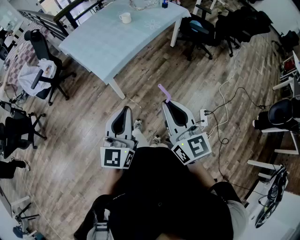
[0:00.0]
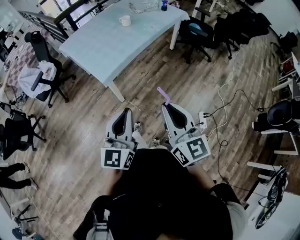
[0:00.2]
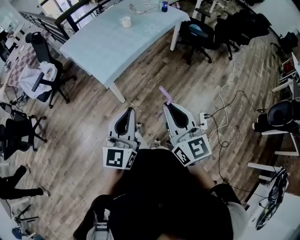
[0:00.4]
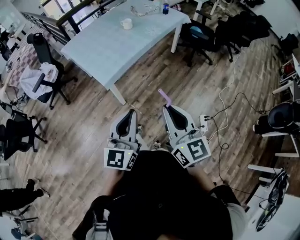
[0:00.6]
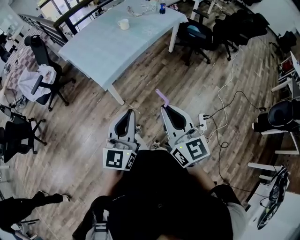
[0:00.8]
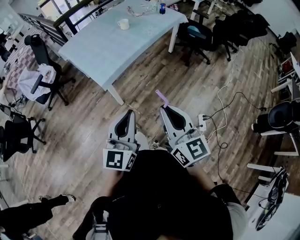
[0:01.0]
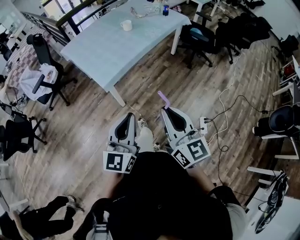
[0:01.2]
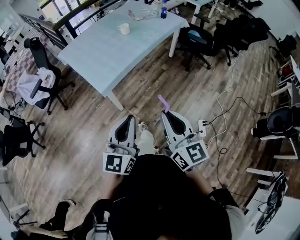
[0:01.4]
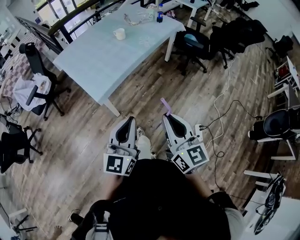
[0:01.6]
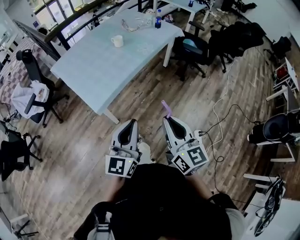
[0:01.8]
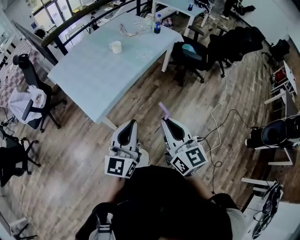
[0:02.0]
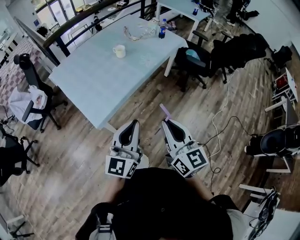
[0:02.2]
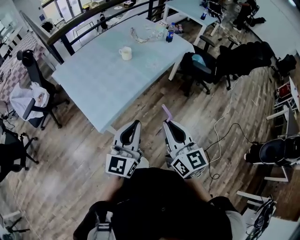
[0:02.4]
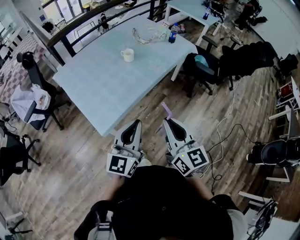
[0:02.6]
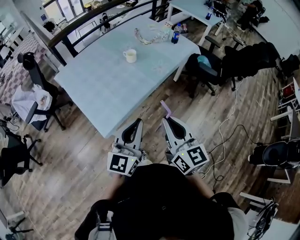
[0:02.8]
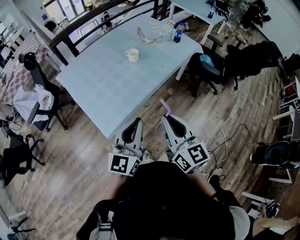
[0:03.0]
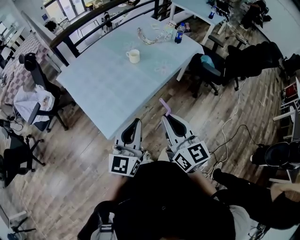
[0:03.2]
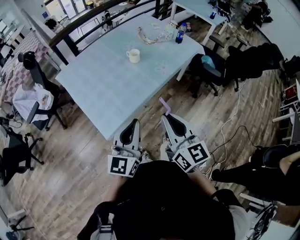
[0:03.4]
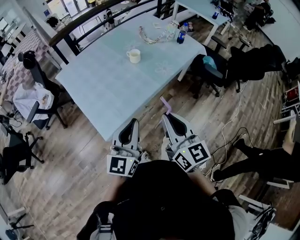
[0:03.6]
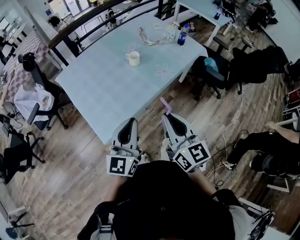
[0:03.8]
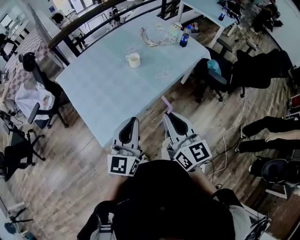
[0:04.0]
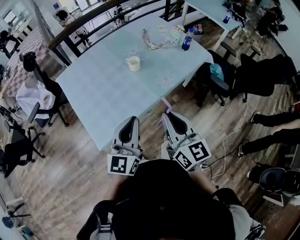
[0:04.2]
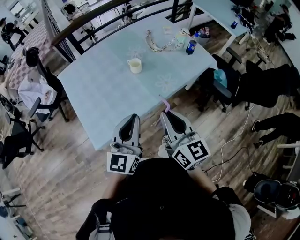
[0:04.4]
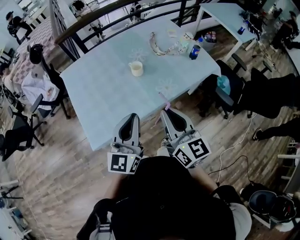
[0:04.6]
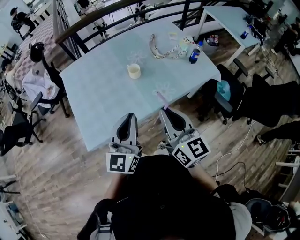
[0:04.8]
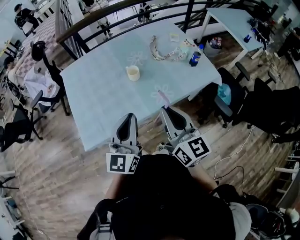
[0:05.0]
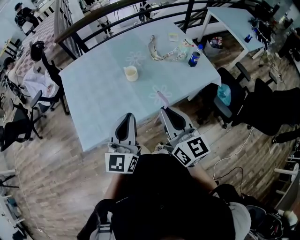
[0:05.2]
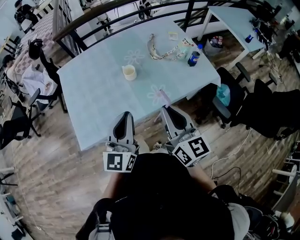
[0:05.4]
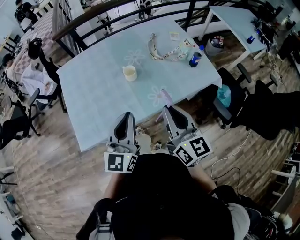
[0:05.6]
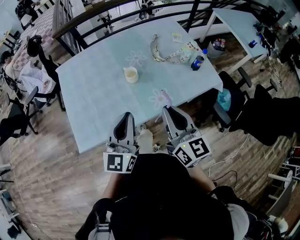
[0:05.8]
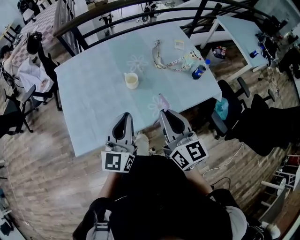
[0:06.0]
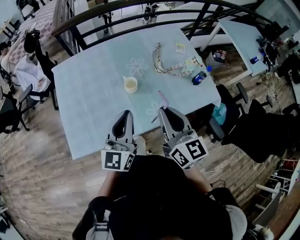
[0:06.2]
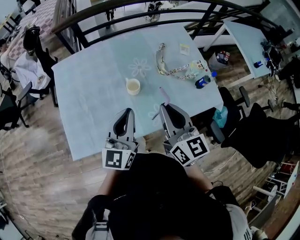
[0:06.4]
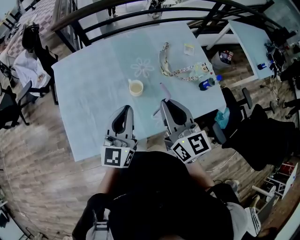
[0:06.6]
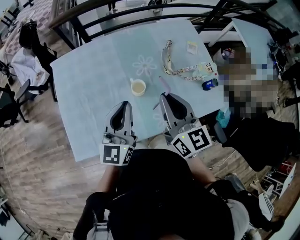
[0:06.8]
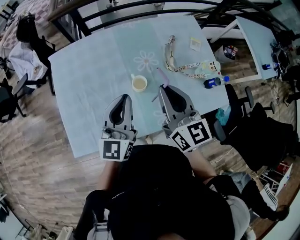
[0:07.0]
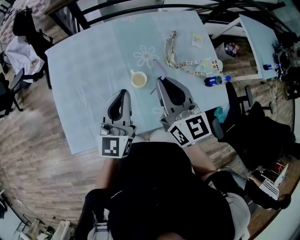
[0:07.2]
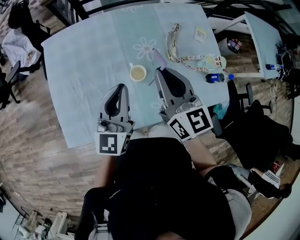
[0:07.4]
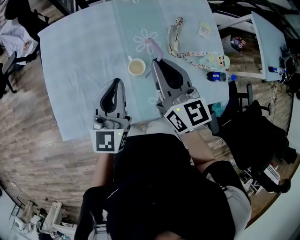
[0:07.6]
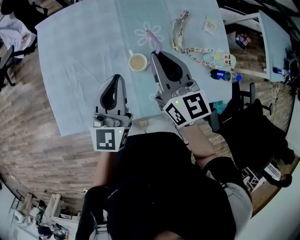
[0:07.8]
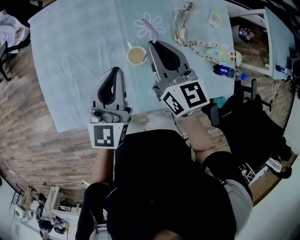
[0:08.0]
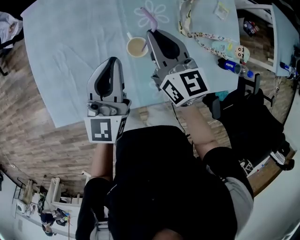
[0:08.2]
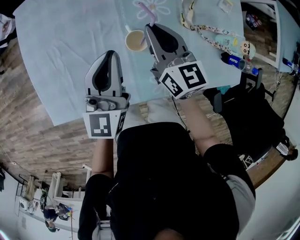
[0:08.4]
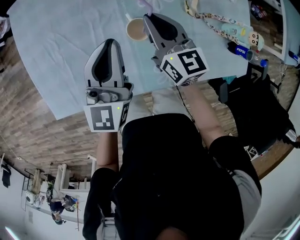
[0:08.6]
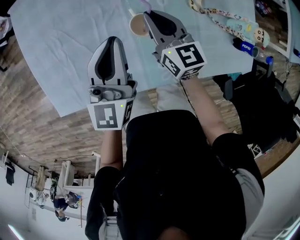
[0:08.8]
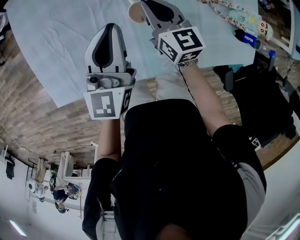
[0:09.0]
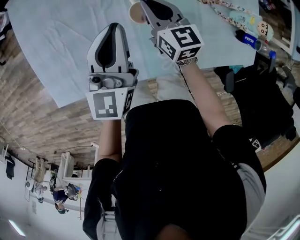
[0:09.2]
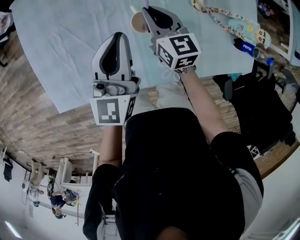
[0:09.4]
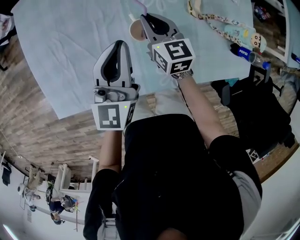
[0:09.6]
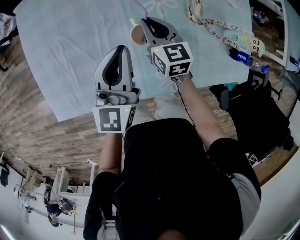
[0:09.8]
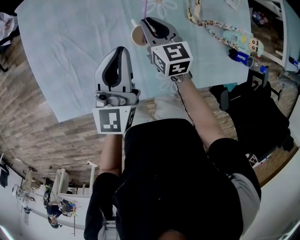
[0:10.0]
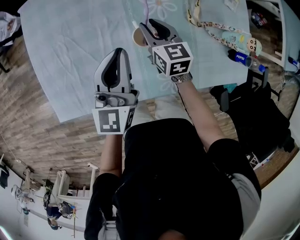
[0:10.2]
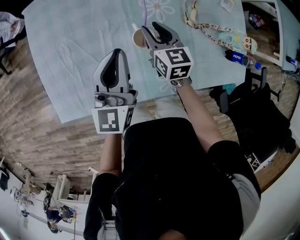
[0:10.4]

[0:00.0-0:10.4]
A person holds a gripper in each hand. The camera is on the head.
0:00.0 to 0:01.4: The grippers stay close to where they were, moving slightly.
0:01.4 to 0:03.0: The two grippers go some 30 cm forward.
0:03.0 to 0:04.4: Both grippers travel together forward and to the right, some 20 cm.
0:04.4 to 0:06.0: The grippers both shift forward and to the right by some 20 cm.
0:06.0 to 0:07.4: Both grippers move forward, roughly 20 cm.
0:07.4 to 0:09.0: The right gripper moves downward, about 25 cm. The left gripper moves downward and forward, some 15 cm.
0:09.0 to 0:10.4: The right gripper opens its fingers.

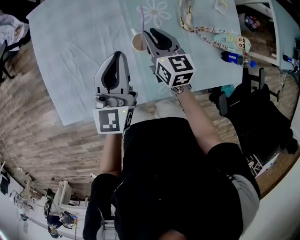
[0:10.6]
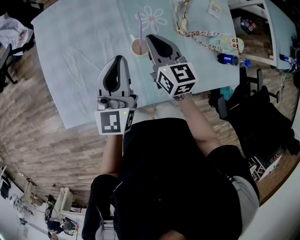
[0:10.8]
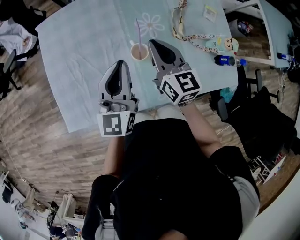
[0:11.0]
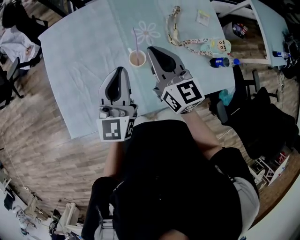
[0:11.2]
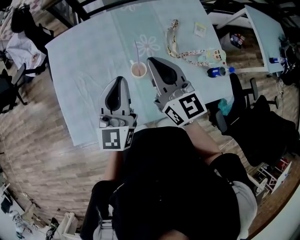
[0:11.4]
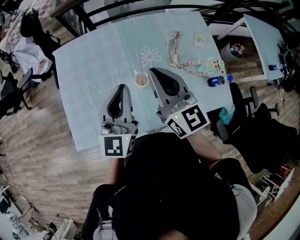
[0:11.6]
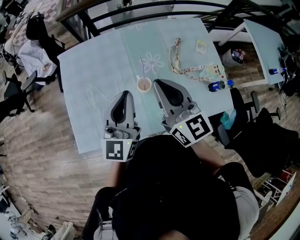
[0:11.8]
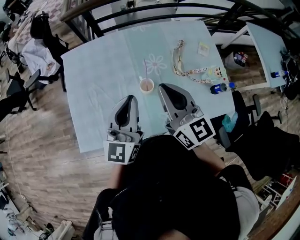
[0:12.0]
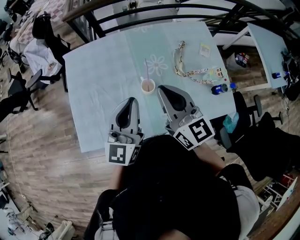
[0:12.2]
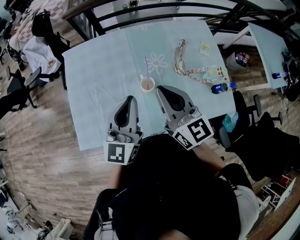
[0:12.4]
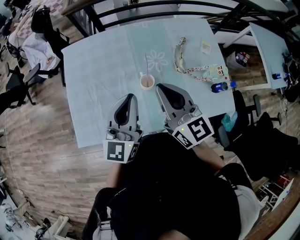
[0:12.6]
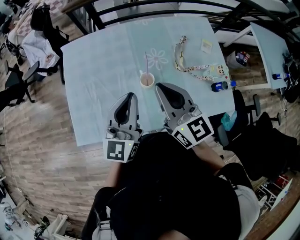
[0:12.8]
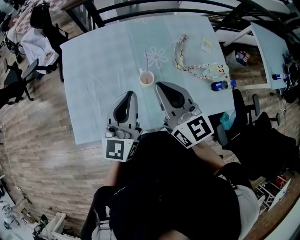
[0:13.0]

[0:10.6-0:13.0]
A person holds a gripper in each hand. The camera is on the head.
0:10.6 to 0:11.8: The right gripper moves upward, roughly 25 cm, and changes its angle by about 30 degrees. Meanwhile the left gripper travels upward and backward by roughly 15 cm.
0:11.8 to 0:13.0: The grippers stay close to where they were, moving slightly.

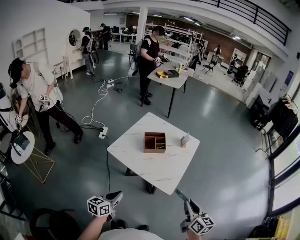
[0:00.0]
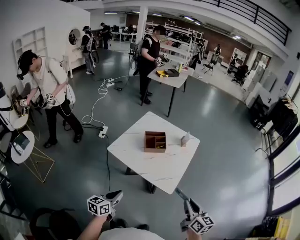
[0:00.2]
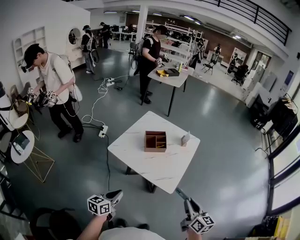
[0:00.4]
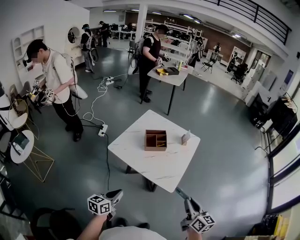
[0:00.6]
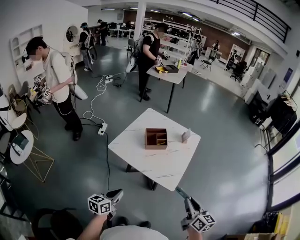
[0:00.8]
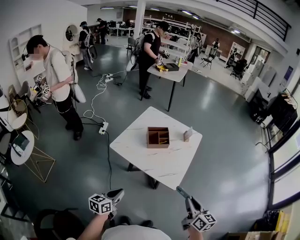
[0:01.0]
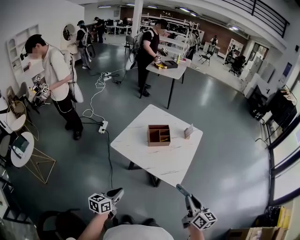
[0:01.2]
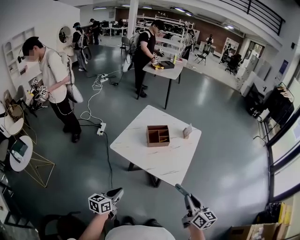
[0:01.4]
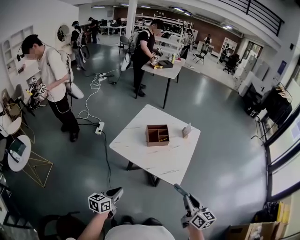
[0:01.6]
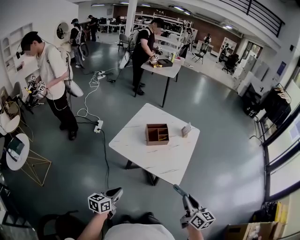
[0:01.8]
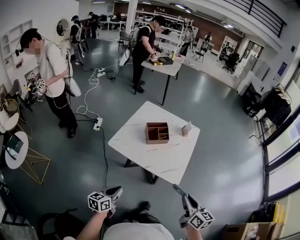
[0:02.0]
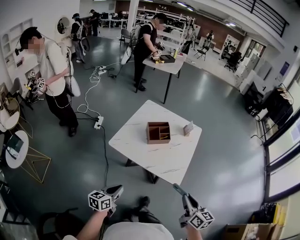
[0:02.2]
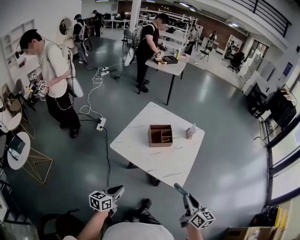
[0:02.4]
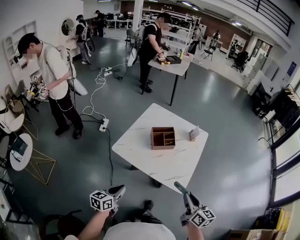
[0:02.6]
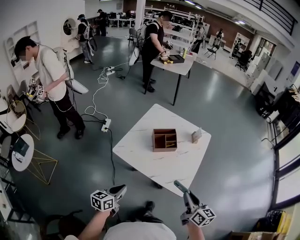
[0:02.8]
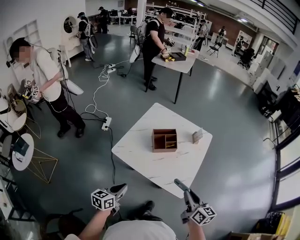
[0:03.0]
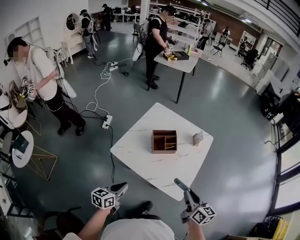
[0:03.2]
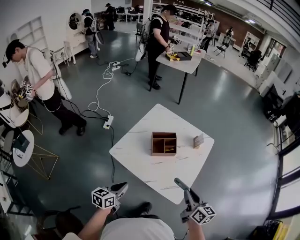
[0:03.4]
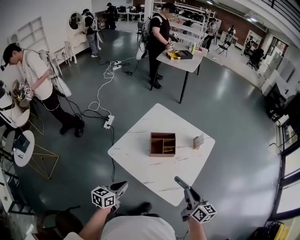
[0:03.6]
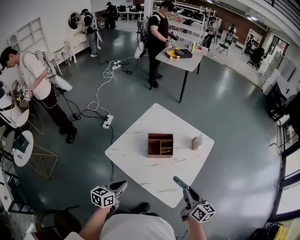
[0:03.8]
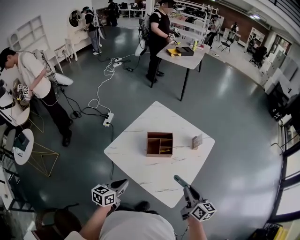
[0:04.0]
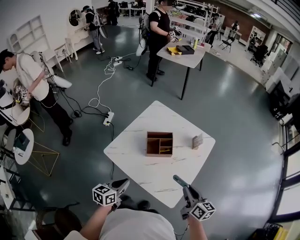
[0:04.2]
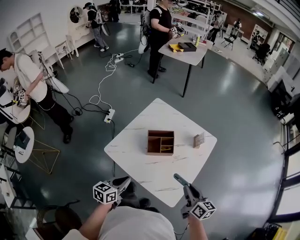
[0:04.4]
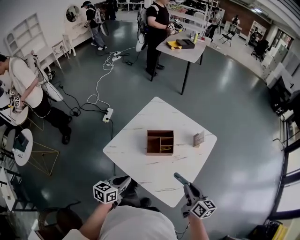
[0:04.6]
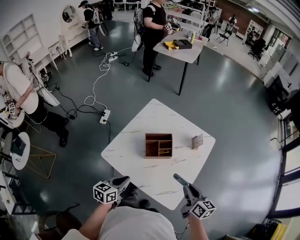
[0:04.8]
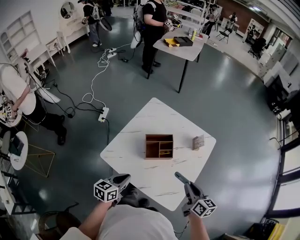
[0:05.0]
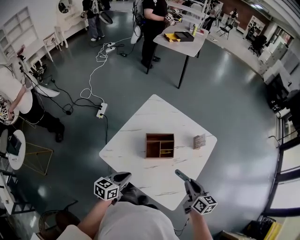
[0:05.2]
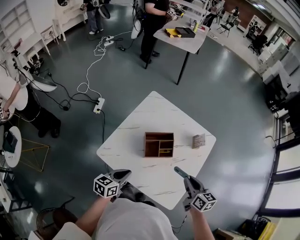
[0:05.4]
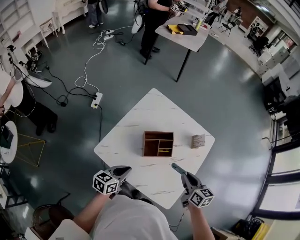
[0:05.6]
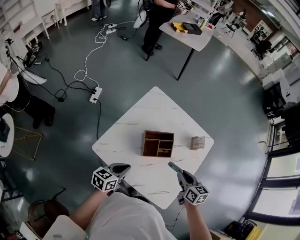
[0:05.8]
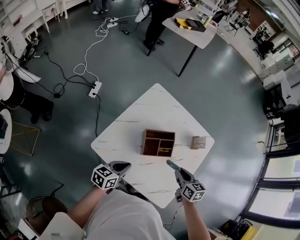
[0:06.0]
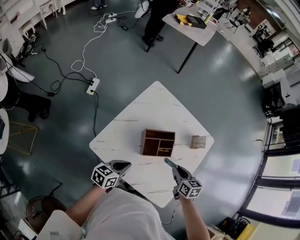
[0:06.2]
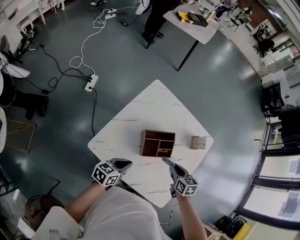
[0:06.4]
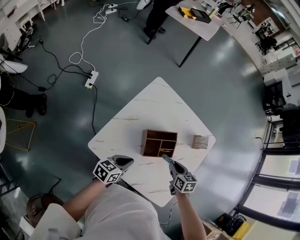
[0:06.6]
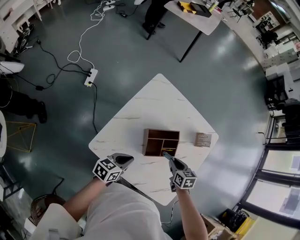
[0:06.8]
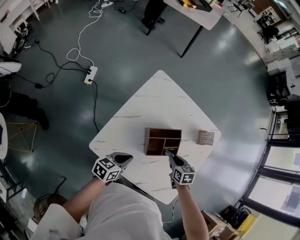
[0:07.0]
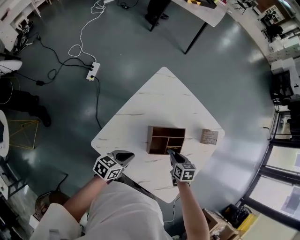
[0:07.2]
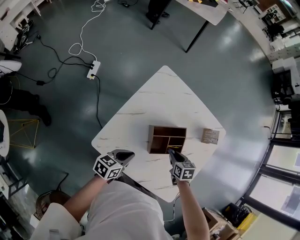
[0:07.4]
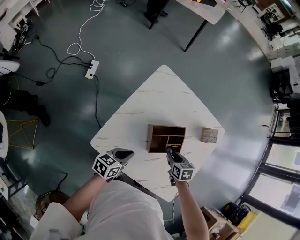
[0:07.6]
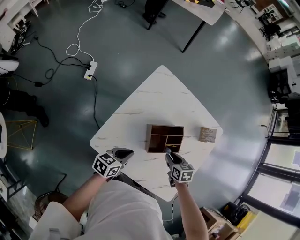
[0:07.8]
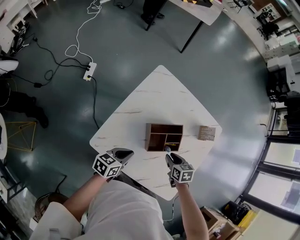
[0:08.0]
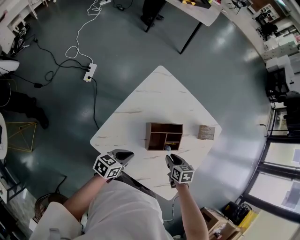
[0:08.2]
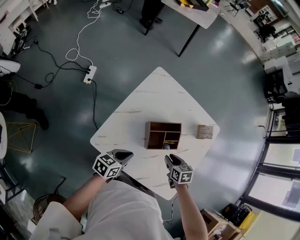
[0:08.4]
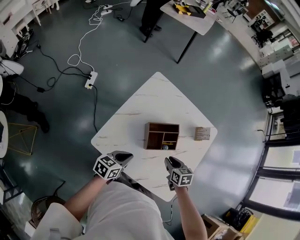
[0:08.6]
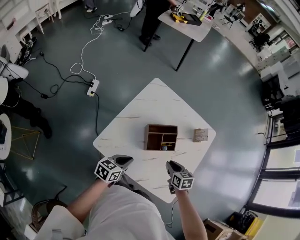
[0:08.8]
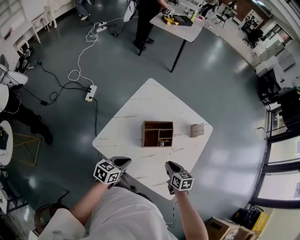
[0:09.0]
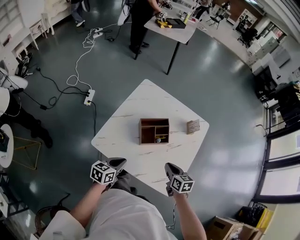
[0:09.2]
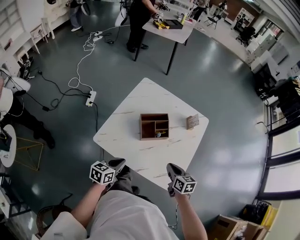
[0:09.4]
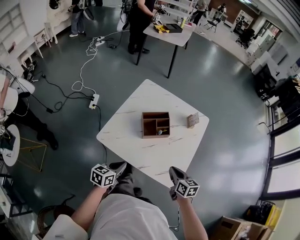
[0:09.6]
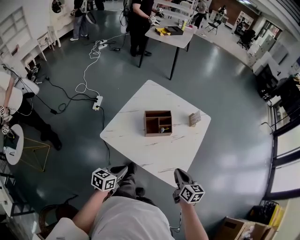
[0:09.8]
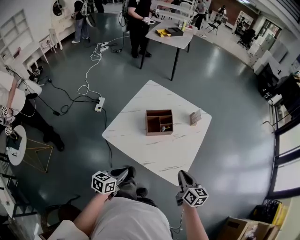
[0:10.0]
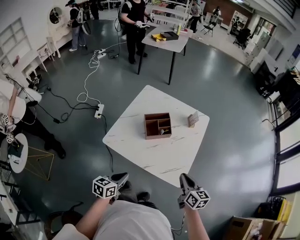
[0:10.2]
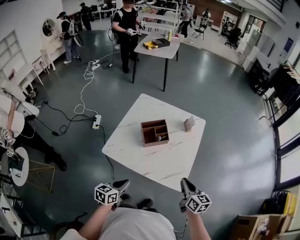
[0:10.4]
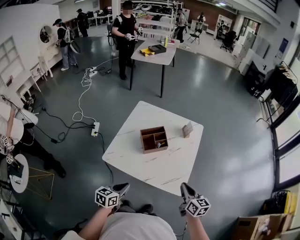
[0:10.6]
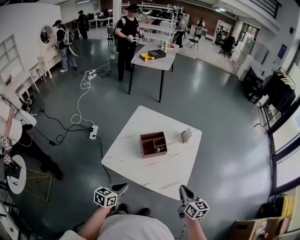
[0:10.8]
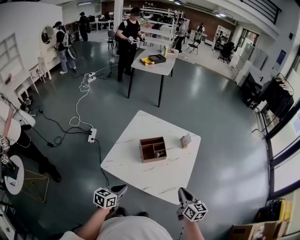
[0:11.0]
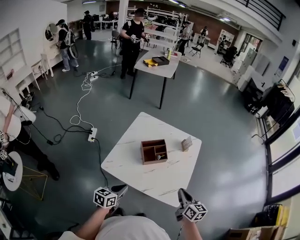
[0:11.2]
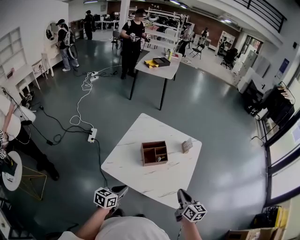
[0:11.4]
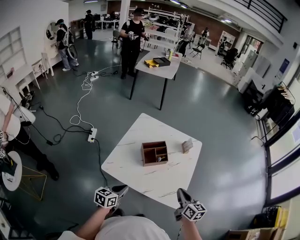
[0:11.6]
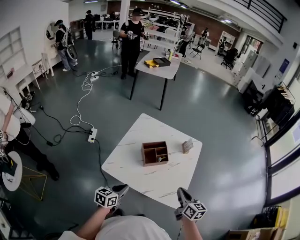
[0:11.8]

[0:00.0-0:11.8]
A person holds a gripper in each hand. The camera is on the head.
0:00.0 to 0:01.4: Both grippers travel together to the left, some 5 cm.
0:01.4 to 0:03.0: The two grippers go approximately 15 cm forward.
0:03.0 to 0:04.4: The two grippers go some 15 cm forward and to the right.
0:04.4 to 0:06.0: The right gripper shifts roughly 20 cm forward, to the left and downward, and rotates roughly 20 degrees. Meanwhile the left gripper goes some 15 cm forward.
0:06.0 to 0:07.4: The left gripper heads downward and forward, covering some 10 cm. Meanwhile the right gripper heads downward and to the left, covering roughly 15 cm.
0:07.4 to 0:08.8: The left gripper travels backward by about 5 cm. The right gripper shifts approximately 10 cm backward and upward.
0:08.8 to 0:10.4: The right gripper heads backward, upward and to the right, covering roughly 30 cm, and turns by about 30 degrees. The left gripper shifts roughly 20 cm backward.
0:10.4 to 0:11.8: The right gripper goes some 5 cm to the left, while the left gripper goes about 5 cm forward.
